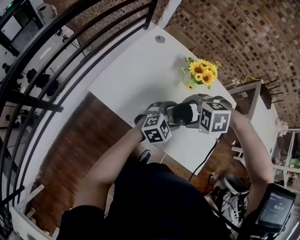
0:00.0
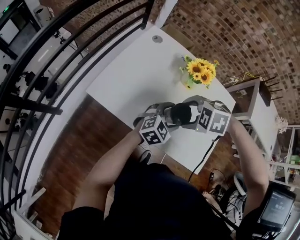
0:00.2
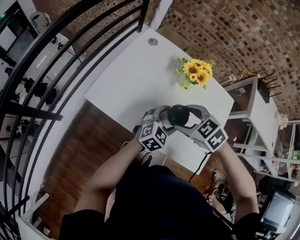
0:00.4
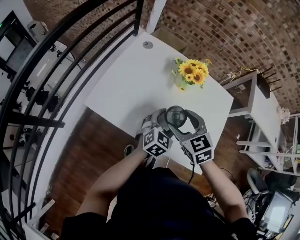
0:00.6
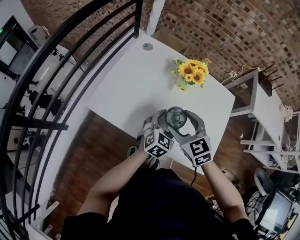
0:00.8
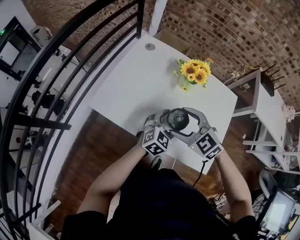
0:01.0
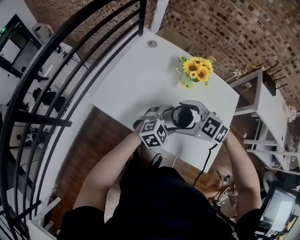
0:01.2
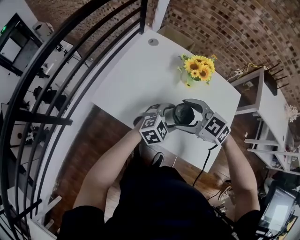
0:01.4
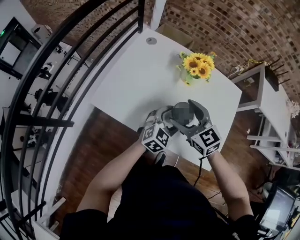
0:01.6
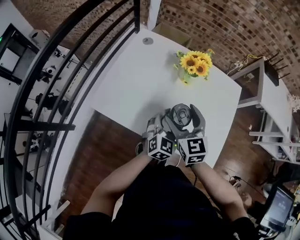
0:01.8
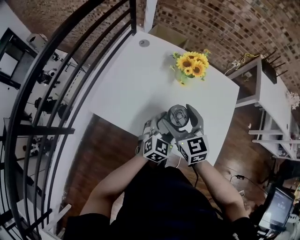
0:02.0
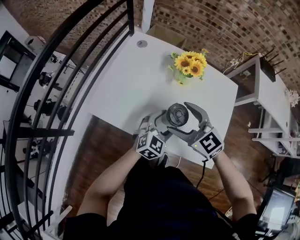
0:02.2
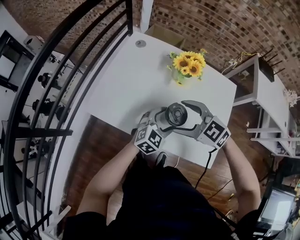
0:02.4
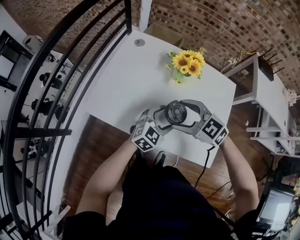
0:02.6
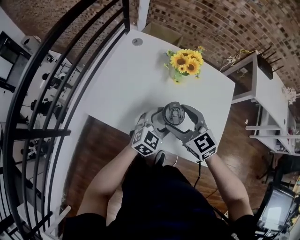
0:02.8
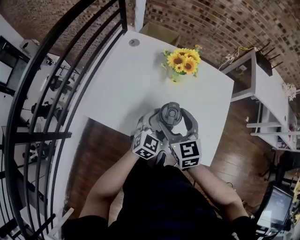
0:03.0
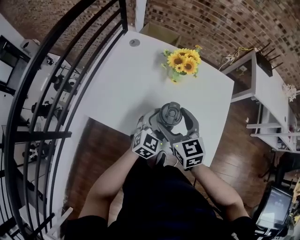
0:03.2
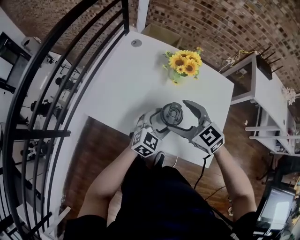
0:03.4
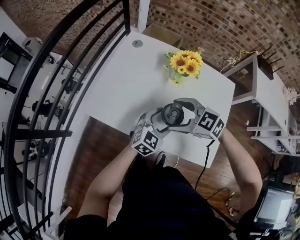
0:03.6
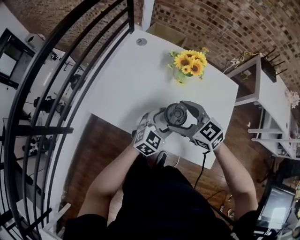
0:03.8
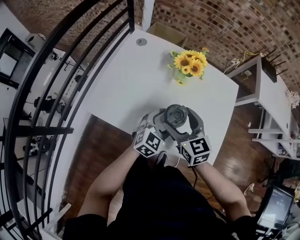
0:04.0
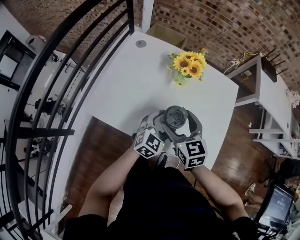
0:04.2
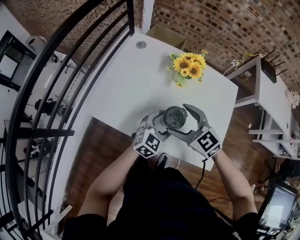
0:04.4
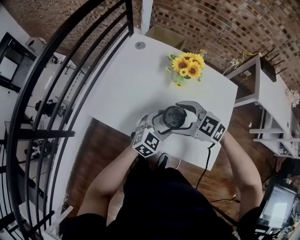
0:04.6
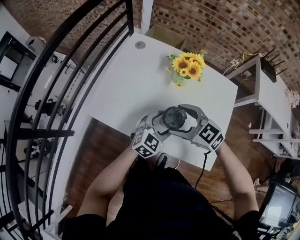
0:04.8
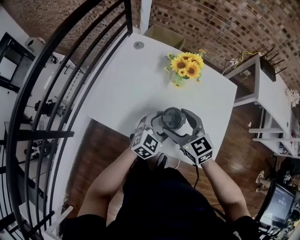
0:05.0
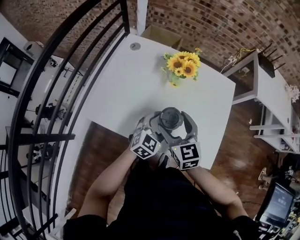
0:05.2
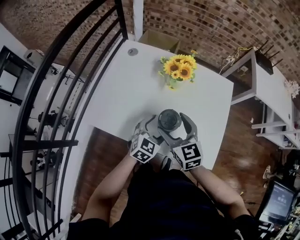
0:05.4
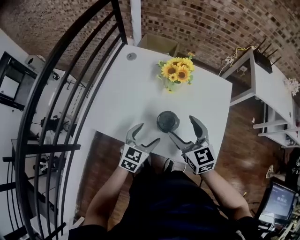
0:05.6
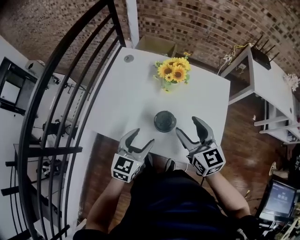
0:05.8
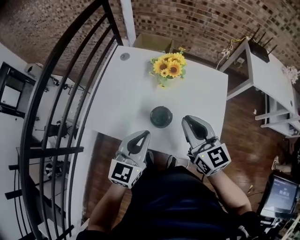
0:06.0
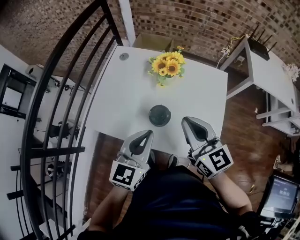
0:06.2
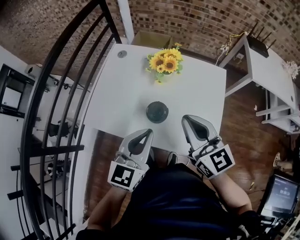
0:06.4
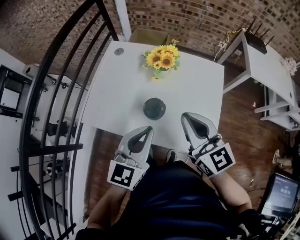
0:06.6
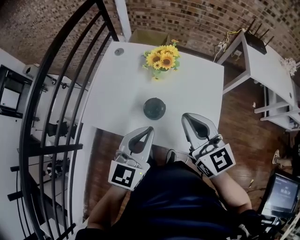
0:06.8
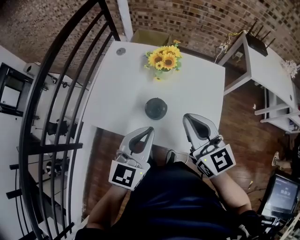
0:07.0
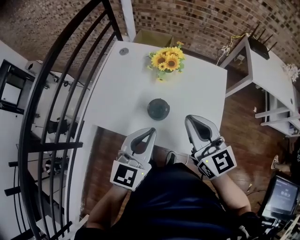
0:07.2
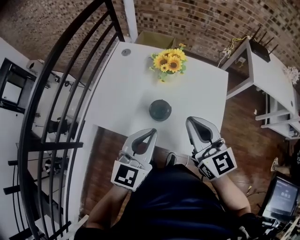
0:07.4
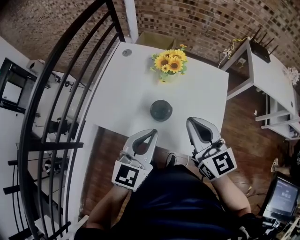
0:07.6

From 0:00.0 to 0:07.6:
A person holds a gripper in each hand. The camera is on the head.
From 0:00.0 to 0:01.6: The right gripper tilts its fingers about 50 degrees upward.
From 0:01.6 to 0:03.0: The right gripper swivels some 20 degrees.
From 0:03.0 to 0:04.6: The right gripper turns by roughly 50 degrees.
From 0:04.6 to 0:06.0: The two grippers go some 15 cm upward. The right gripper turns by approximately 60 degrees, and closes its fingers, while the left gripper swivels roughly 20 degrees, and closes up.
From 0:06.0 to 0:07.6: The grippers stay close to where they were, moving slightly.

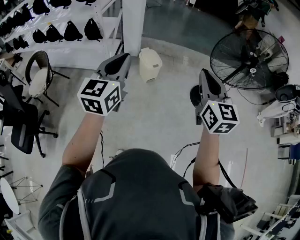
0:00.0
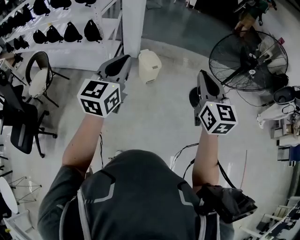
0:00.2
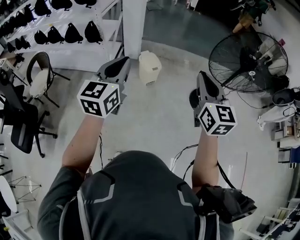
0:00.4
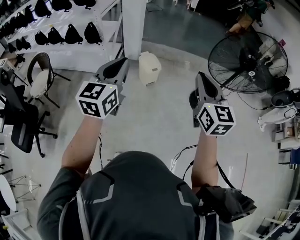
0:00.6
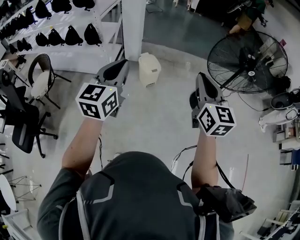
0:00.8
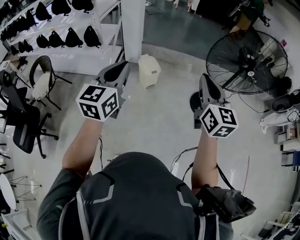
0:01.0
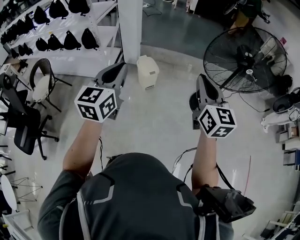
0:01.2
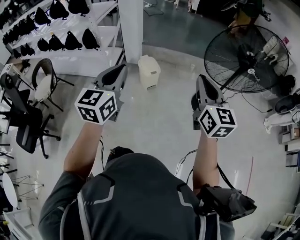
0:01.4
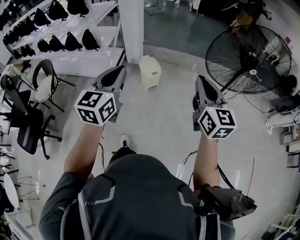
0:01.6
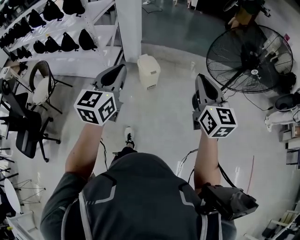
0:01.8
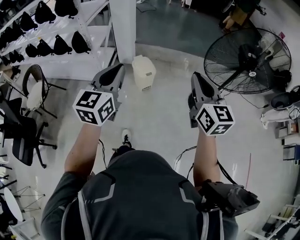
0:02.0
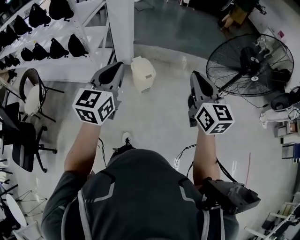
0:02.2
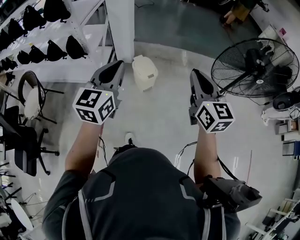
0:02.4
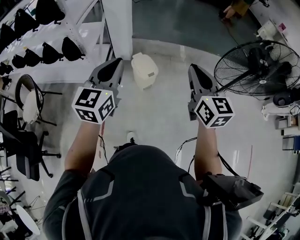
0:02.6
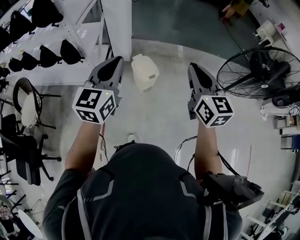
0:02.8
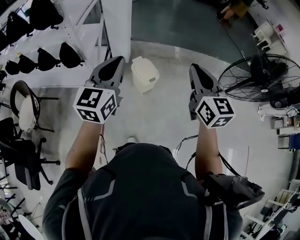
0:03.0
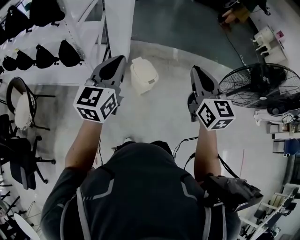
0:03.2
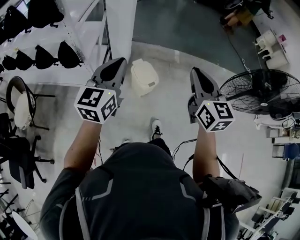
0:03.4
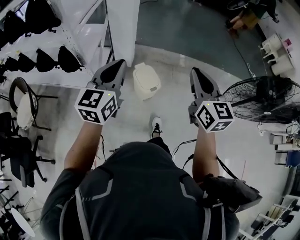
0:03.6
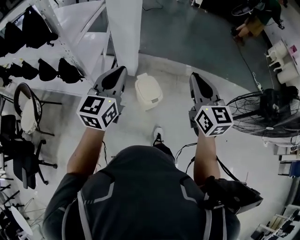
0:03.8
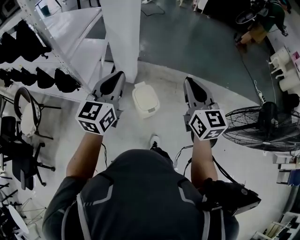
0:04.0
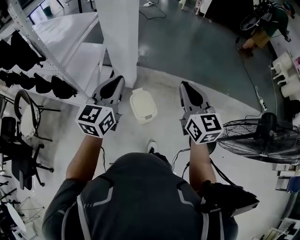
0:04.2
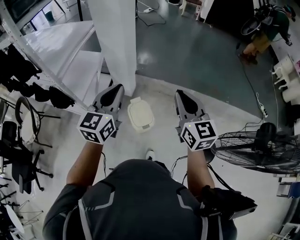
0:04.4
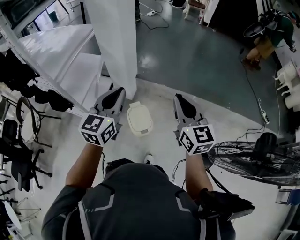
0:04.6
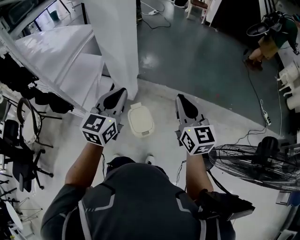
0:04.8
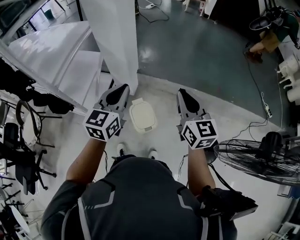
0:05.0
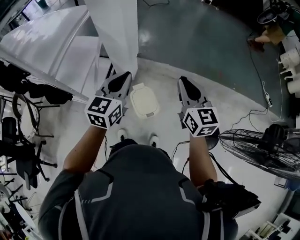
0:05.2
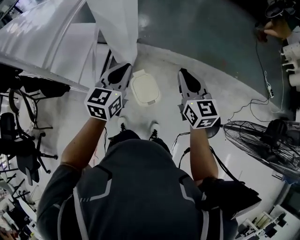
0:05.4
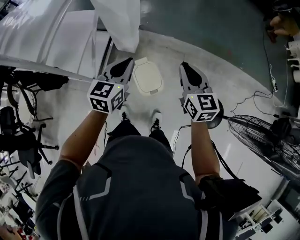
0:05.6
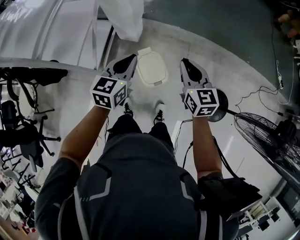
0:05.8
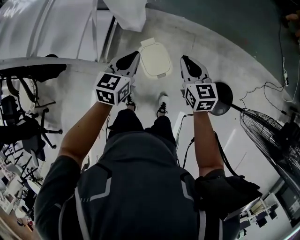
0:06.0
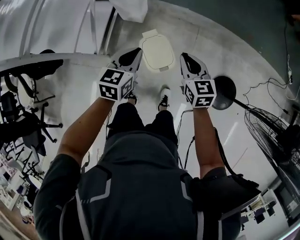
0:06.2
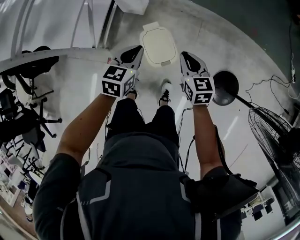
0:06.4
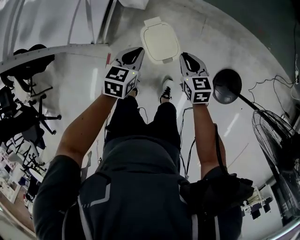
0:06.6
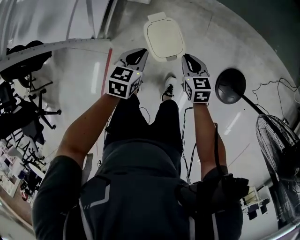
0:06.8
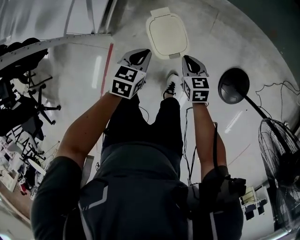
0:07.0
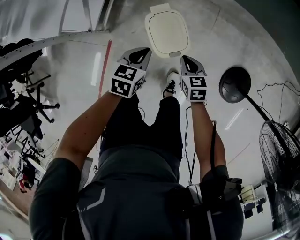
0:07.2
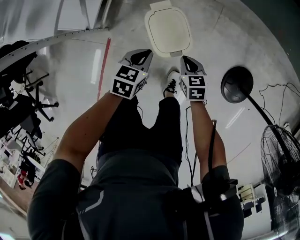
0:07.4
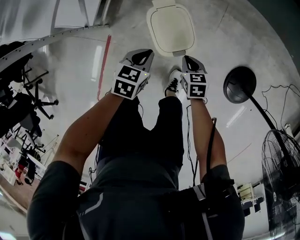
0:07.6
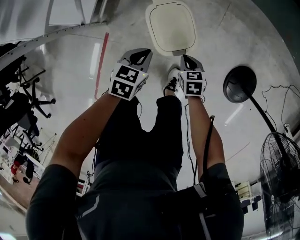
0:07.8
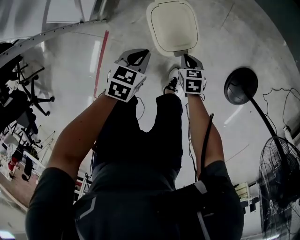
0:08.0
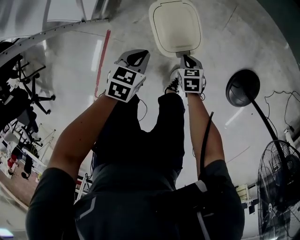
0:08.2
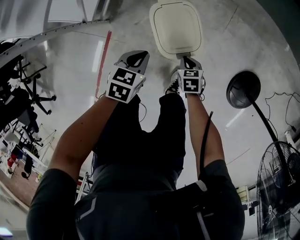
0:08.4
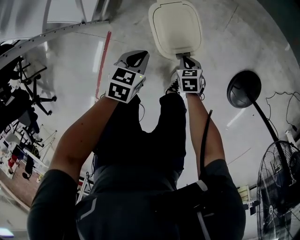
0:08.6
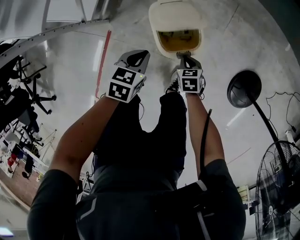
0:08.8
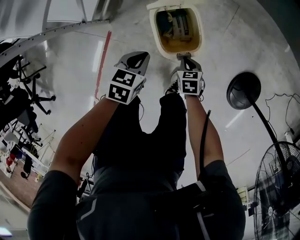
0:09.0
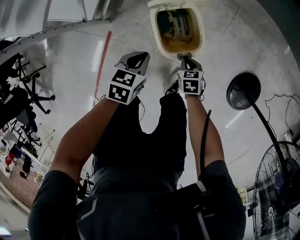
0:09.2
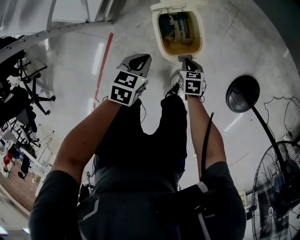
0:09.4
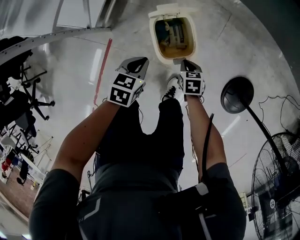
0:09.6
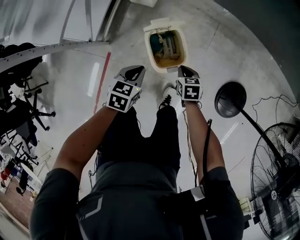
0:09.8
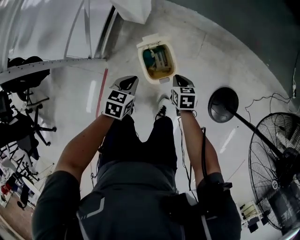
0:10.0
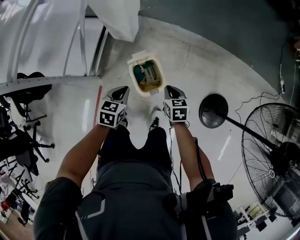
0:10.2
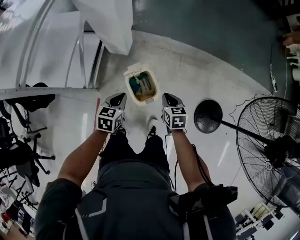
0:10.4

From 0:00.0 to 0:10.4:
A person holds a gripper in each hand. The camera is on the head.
From 0:00.0 to 0:01.4: The two grippers go roughly 10 cm to the right.
From 0:01.4 to 0:03.0: The grippers both shift forward and to the left by about 40 cm.
From 0:03.0 to 0:04.4: The right gripper goes roughly 30 cm forward. Meanwhile the left gripper shifts approximately 30 cm forward and to the right.
From 0:04.4 to 0:06.0: The grippers both shift downward and forward by roughly 30 cm. The left gripper changes its angle by roughly 30 degrees. Meanwhile the right gripper changes its angle by about 20 degrees.
From 0:06.0 to 0:07.4: Both grippers move downward, about 35 cm. The left gripper rotates some 20 degrees, while the right gripper turns by roughly 30 degrees.
From 0:07.4 to 0:09.0: The left gripper shifts approximately 10 cm downward, while the right gripper is displaced downward by roughly 15 cm.
From 0:09.0 to 0:10.4: The grippers both shift upward by about 30 cm. The right gripper rotates roughly 20 degrees.

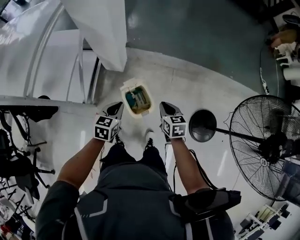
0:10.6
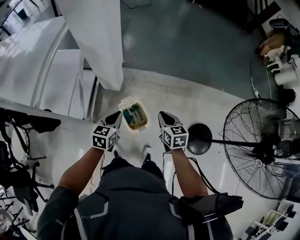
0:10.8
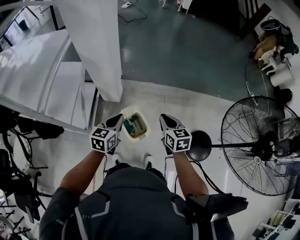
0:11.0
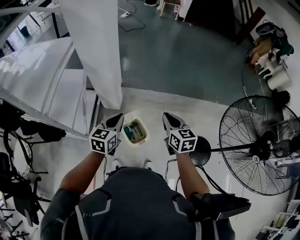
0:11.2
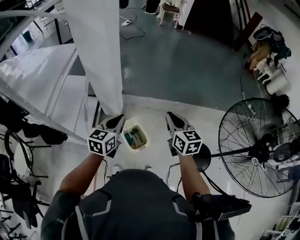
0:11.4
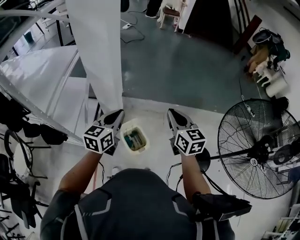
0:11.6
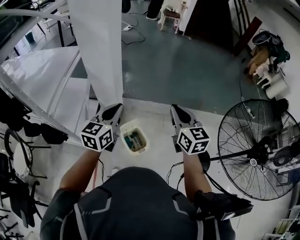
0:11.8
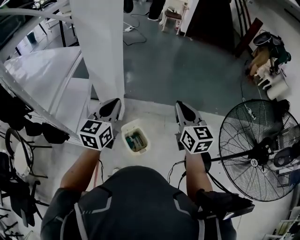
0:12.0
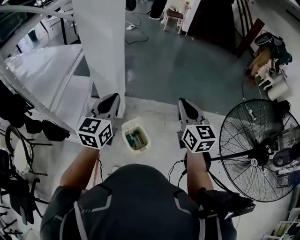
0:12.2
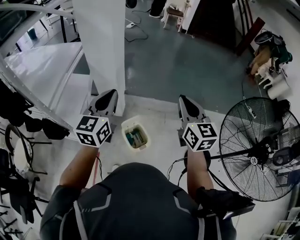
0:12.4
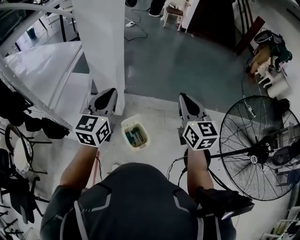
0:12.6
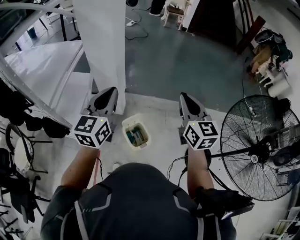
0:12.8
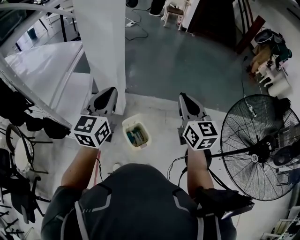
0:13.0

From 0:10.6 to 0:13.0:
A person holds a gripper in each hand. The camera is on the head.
From 0:10.6 to 0:11.8: Both grippers travel together upward, roughly 35 cm. The left gripper swivels roughly 30 degrees; the right gripper points its fingers some 30 degrees further upward.
From 0:11.8 to 0:13.0: The left gripper travels upward by about 5 cm.

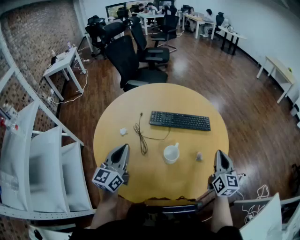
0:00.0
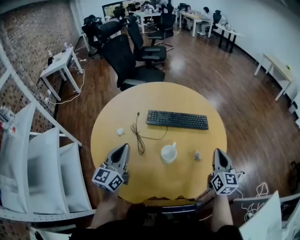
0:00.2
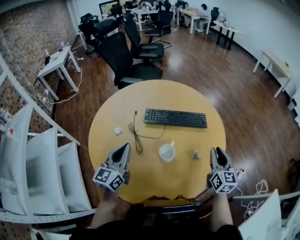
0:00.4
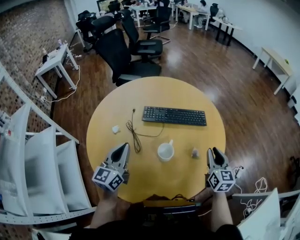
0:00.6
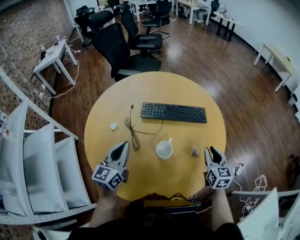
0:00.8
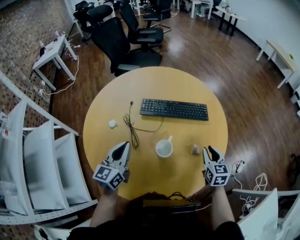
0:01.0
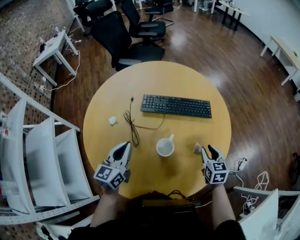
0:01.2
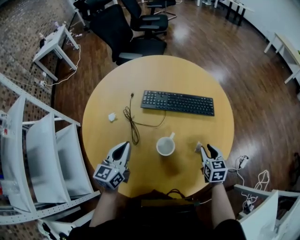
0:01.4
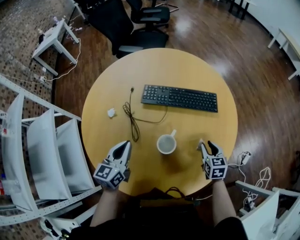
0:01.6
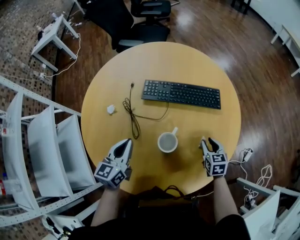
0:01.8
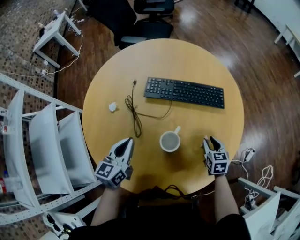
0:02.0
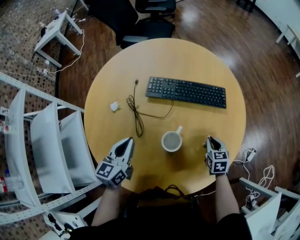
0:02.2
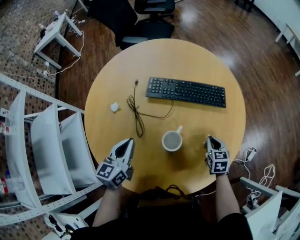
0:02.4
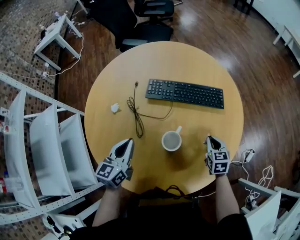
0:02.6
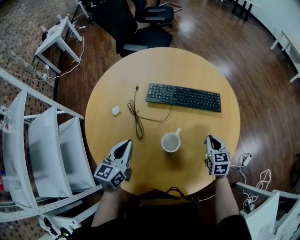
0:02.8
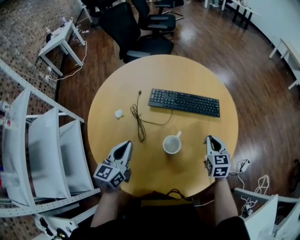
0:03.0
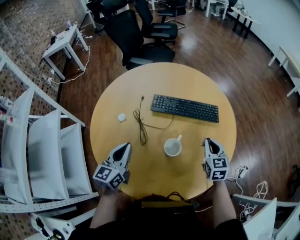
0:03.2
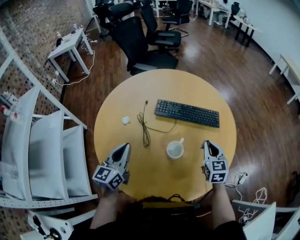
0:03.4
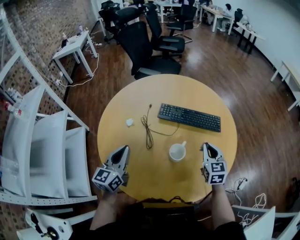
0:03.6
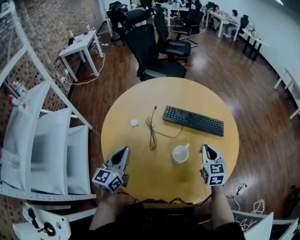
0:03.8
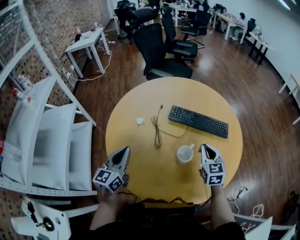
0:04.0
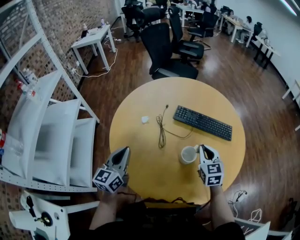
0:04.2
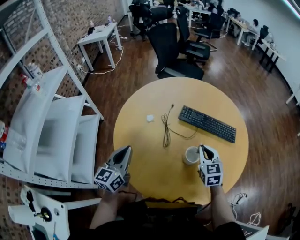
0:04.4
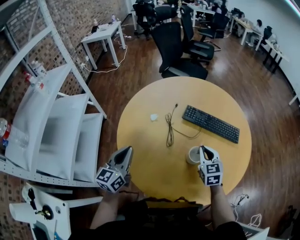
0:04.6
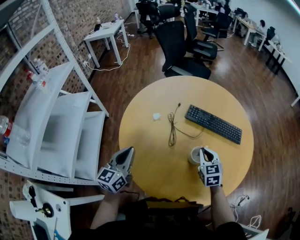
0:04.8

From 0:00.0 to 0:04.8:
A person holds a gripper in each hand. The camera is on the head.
From 0:00.0 to 0:01.6: The right gripper moves downward, roughly 20 cm, points its fingers about 30 degrees further downward, and opens its fingers, while the left gripper is displaced downward by approximately 10 cm.
From 0:01.6 to 0:03.2: The right gripper is displaced upward by about 10 cm, and closes its fingers. The left gripper ends up approximately 5 cm from where it was.
From 0:03.2 to 0:04.8: The right gripper is displaced to the left by approximately 15 cm, and changes its angle by about 20 degrees, while the left gripper goes about 15 cm to the left and backward.
